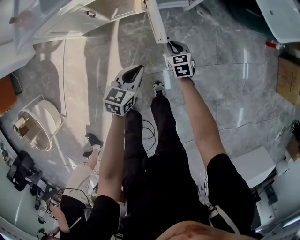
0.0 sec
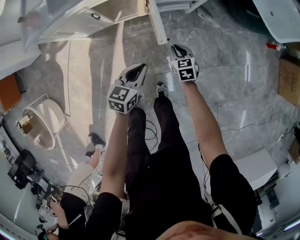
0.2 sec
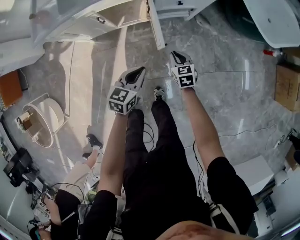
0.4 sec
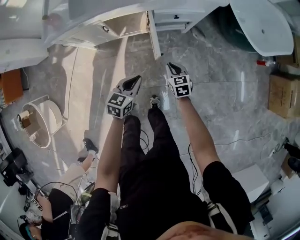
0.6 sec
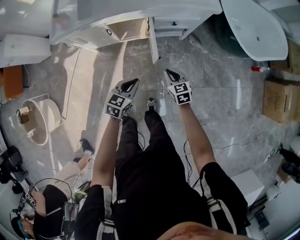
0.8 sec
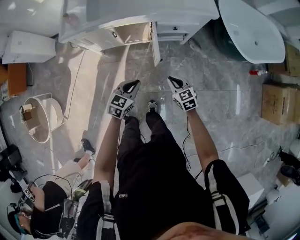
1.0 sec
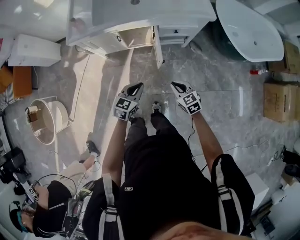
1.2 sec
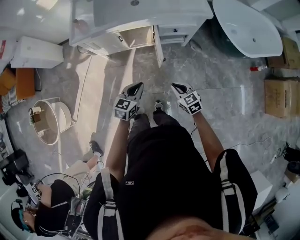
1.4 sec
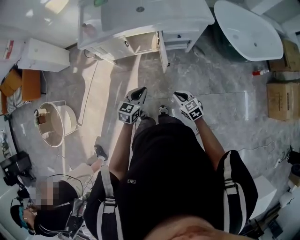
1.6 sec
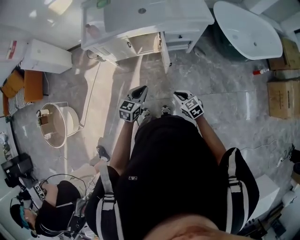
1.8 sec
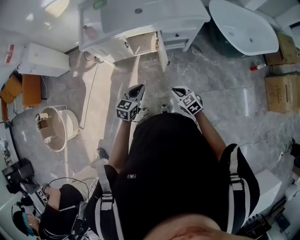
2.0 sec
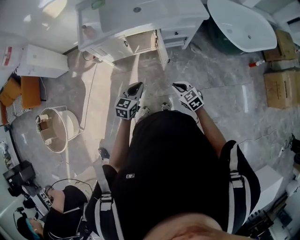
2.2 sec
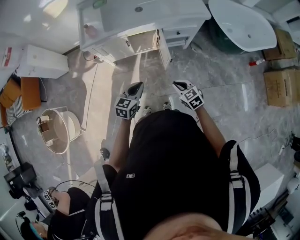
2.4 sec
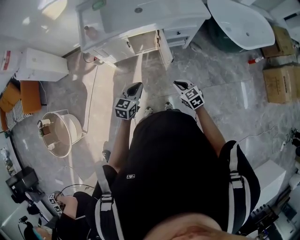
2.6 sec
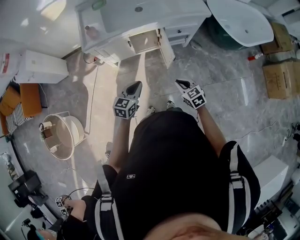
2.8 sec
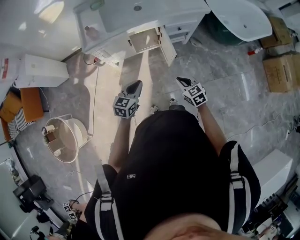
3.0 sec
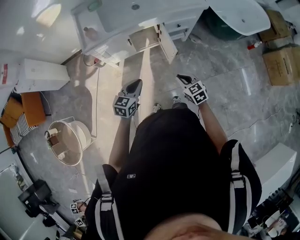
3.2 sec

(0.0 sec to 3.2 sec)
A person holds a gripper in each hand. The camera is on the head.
0.0 sec - 1.6 sec: The two grippers go roughly 30 cm upward and backward. The right gripper changes its angle by roughly 30 degrees.
1.6 sec - 3.2 sec: The two grippers go some 15 cm to the left.

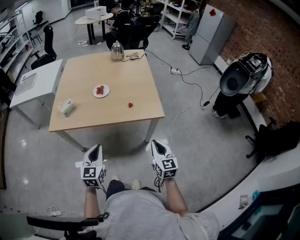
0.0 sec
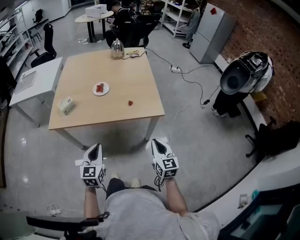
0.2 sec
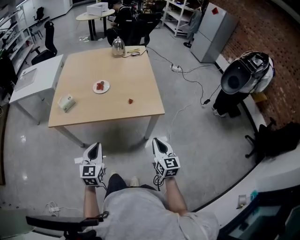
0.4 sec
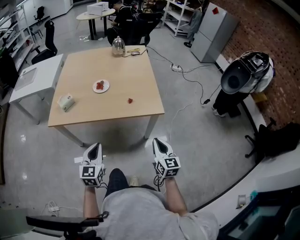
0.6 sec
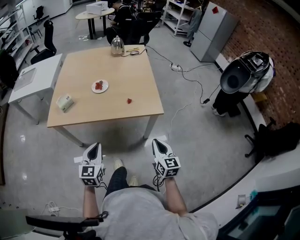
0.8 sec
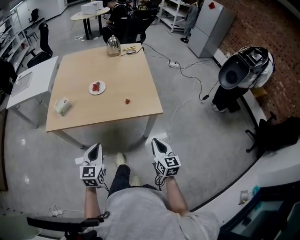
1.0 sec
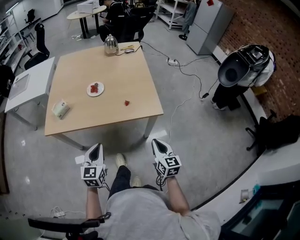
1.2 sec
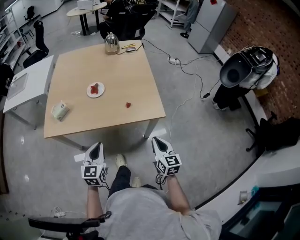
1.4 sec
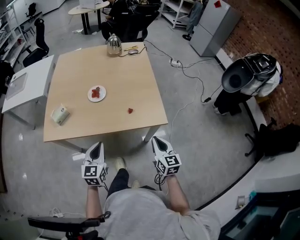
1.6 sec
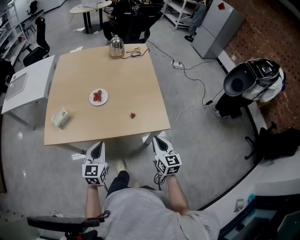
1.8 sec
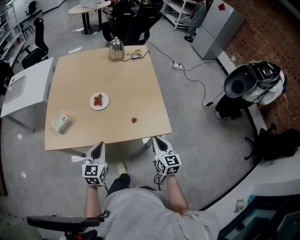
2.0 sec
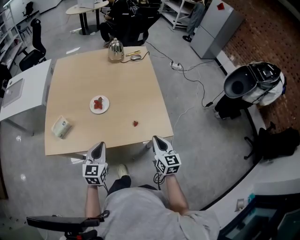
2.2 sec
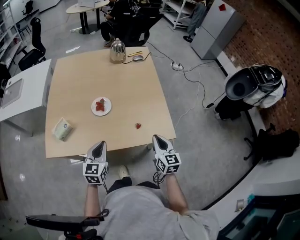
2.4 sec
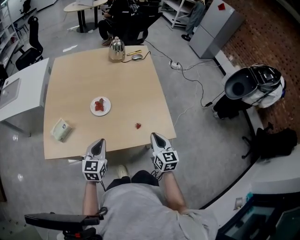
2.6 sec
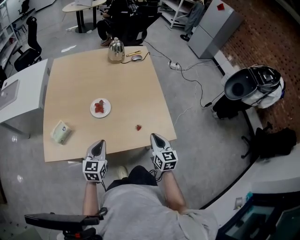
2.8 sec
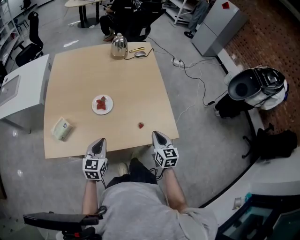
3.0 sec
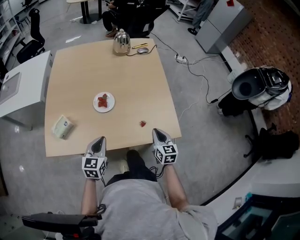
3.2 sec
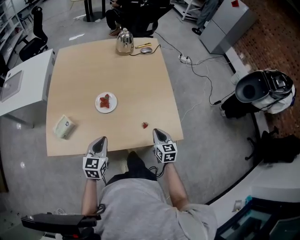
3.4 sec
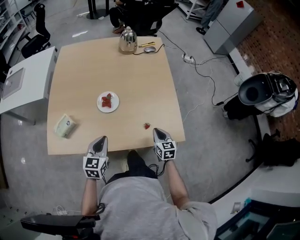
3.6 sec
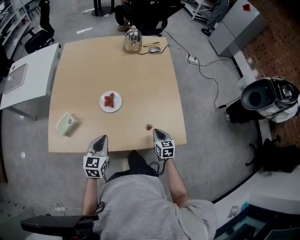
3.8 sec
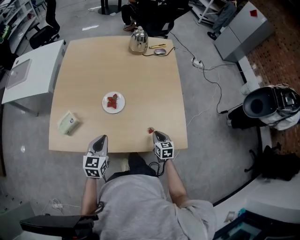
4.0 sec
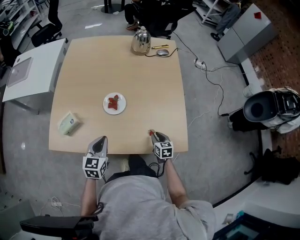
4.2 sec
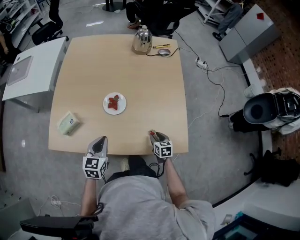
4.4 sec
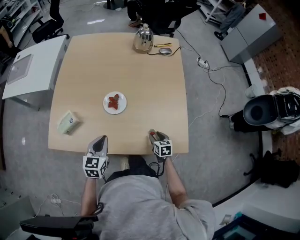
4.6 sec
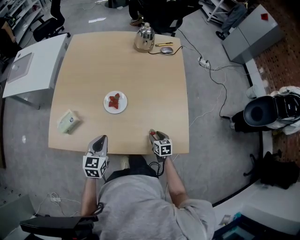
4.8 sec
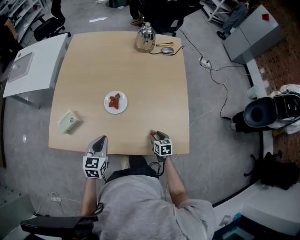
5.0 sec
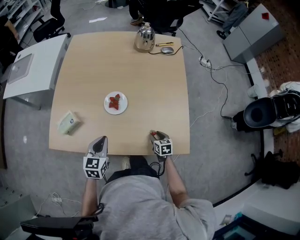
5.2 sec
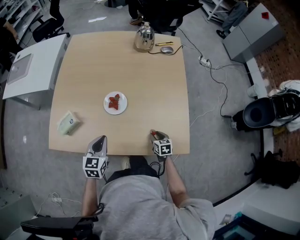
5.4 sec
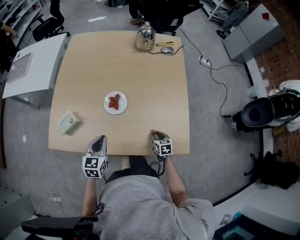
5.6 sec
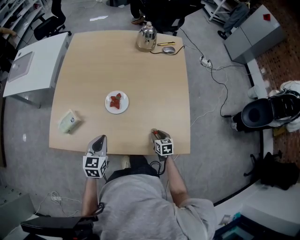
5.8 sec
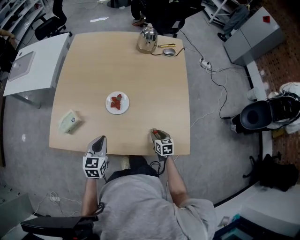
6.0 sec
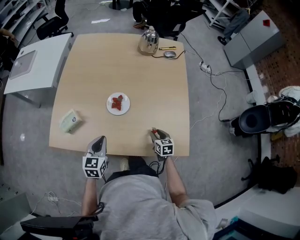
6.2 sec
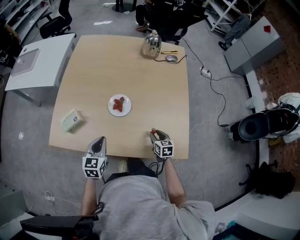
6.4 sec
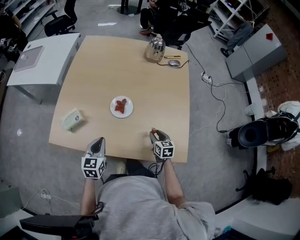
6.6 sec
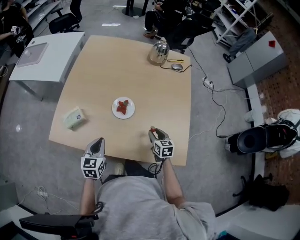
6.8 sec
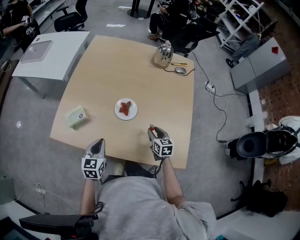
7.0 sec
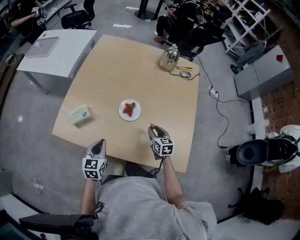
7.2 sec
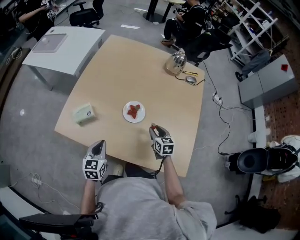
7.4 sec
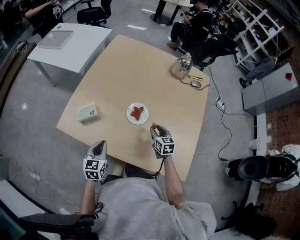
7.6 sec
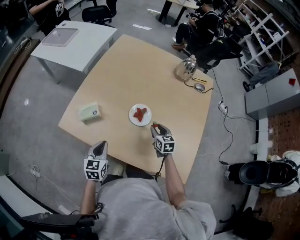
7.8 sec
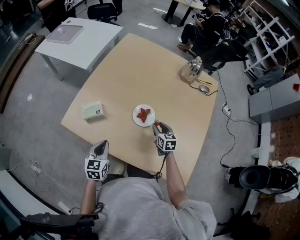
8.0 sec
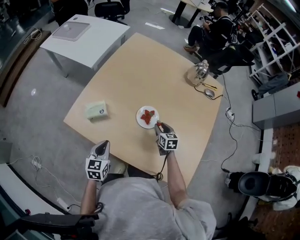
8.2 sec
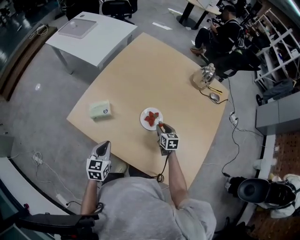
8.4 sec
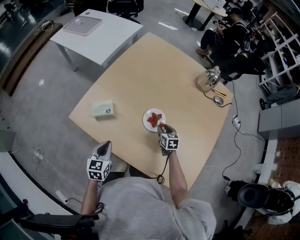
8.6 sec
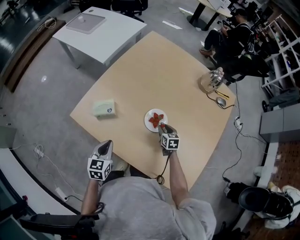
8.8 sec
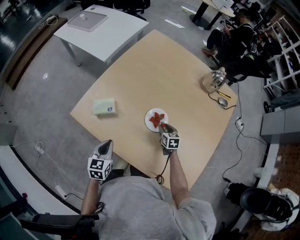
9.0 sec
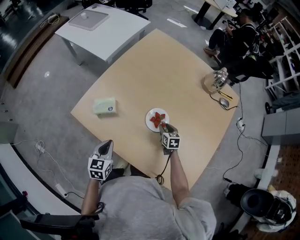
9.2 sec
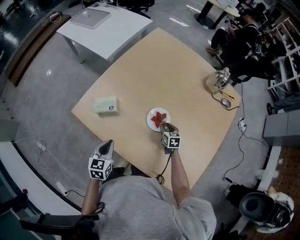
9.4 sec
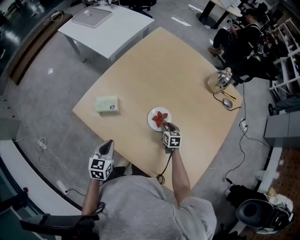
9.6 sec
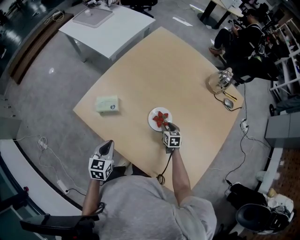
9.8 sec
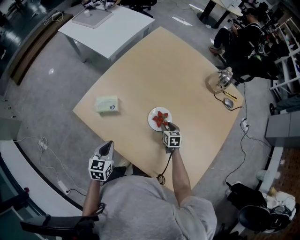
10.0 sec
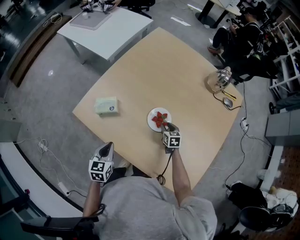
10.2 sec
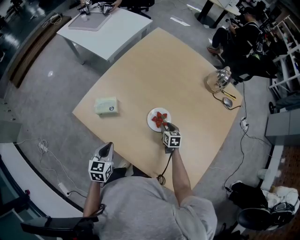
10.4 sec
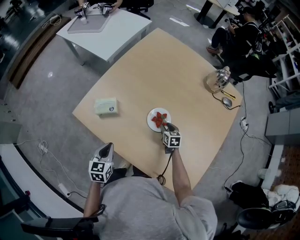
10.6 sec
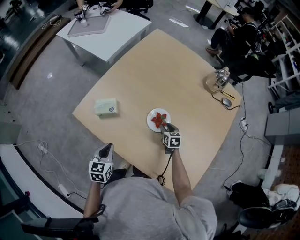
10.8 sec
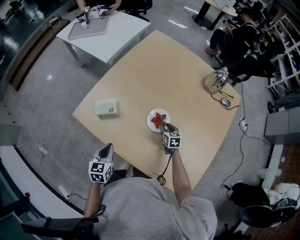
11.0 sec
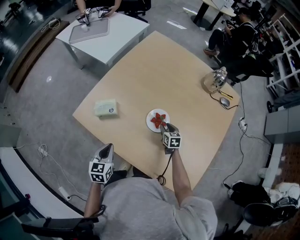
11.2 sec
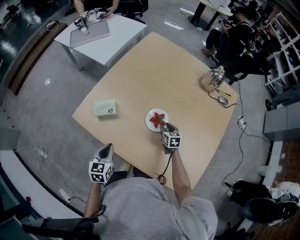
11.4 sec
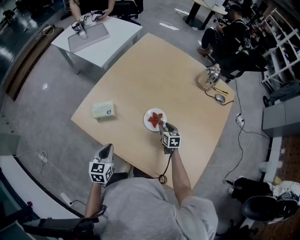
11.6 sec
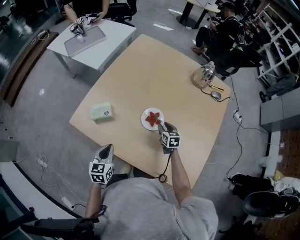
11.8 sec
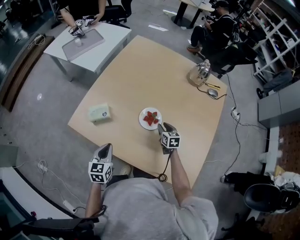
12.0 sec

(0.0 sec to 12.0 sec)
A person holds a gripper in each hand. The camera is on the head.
0.0 sec - 1.6 sec: Both grippers move forward, roughly 15 cm.
1.6 sec - 3.0 sec: Both grippers travel together forward and to the left, about 20 cm.
3.0 sec - 4.4 sec: The right gripper moves downward and forward, approximately 20 cm, changes its angle by about 30 degrees, and opens. Meanwhile the left gripper ends up some 5 cm from where it was.
4.4 sec - 6.0 sec: The grippers stay close to where they were, moving slightly.
6.0 sec - 7.6 sec: The left gripper is displaced to the left by some 10 cm, while the right gripper travels forward, to the left and upward by roughly 20 cm, and turns by roughly 20 degrees.
7.6 sec - 9.0 sec: The right gripper travels downward and forward by roughly 15 cm.
9.0 sec - 10.4 sec: There are only small adjustments of the grippers.
10.4 sec - 12.0 sec: The right gripper goes approximately 5 cm upward.

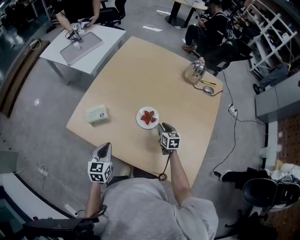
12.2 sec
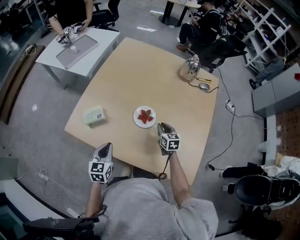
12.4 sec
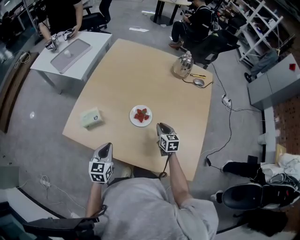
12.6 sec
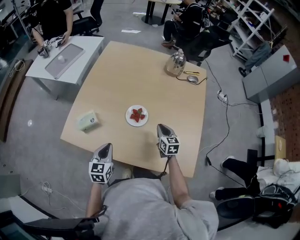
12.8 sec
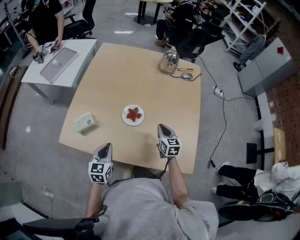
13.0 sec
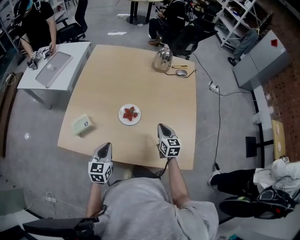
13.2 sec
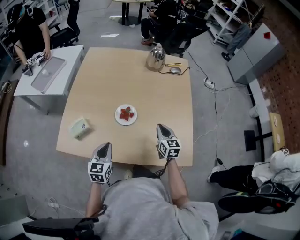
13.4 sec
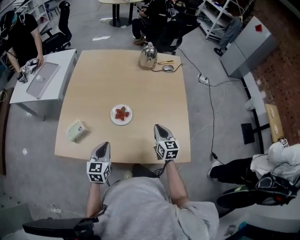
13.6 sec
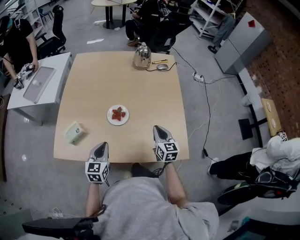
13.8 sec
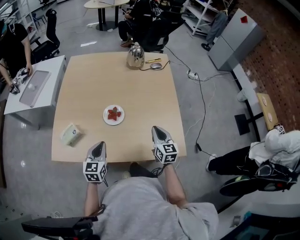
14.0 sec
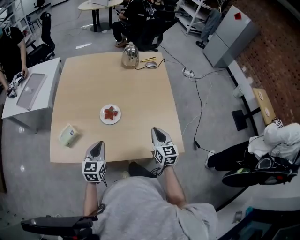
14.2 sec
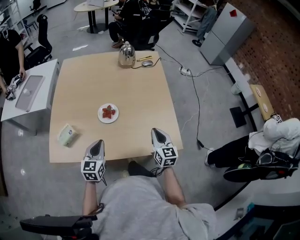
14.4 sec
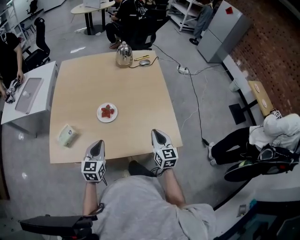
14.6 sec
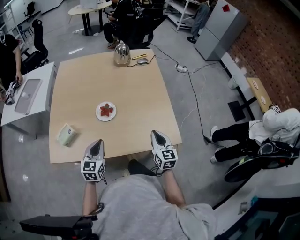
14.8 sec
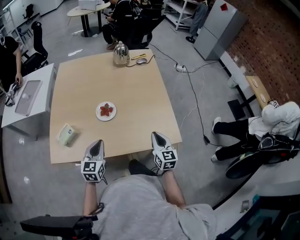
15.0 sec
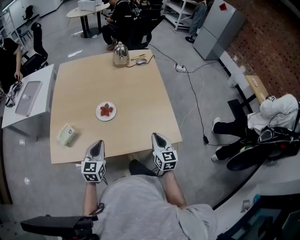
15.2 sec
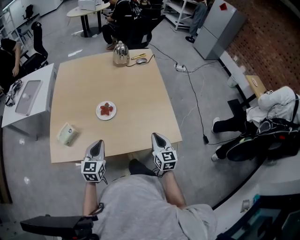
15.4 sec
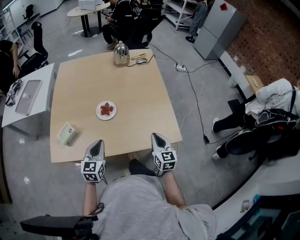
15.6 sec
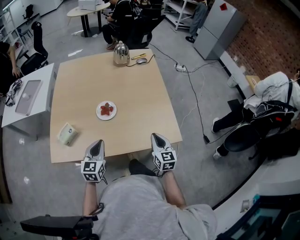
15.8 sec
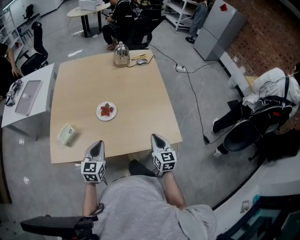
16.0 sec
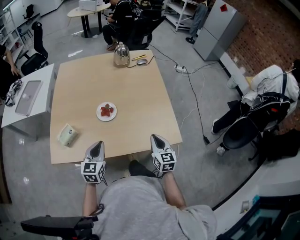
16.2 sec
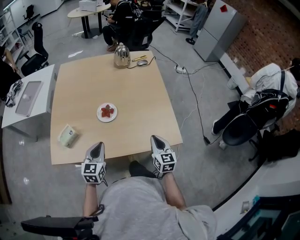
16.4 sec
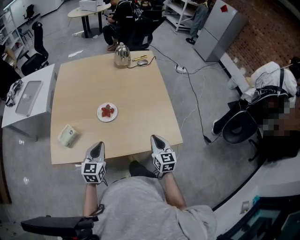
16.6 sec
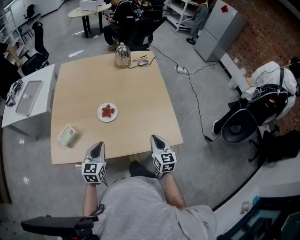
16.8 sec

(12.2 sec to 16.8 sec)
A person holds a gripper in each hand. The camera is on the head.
12.2 sec - 13.8 sec: The left gripper ends up about 10 cm from where it was, and turns by roughly 30 degrees, while the right gripper shifts by roughly 20 cm, swivels some 30 degrees, and closes.
13.8 sec - 15.2 sec: The left gripper changes place by some 5 cm; the right gripper travels backward by roughly 15 cm.
15.2 sec - 16.8 sec: The grippers stay close to where they were, moving slightly.

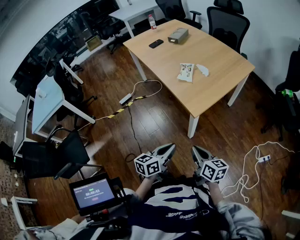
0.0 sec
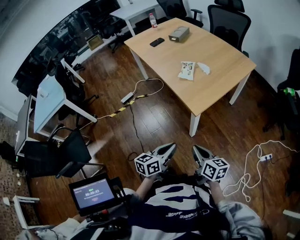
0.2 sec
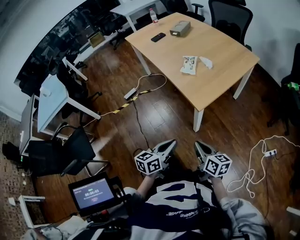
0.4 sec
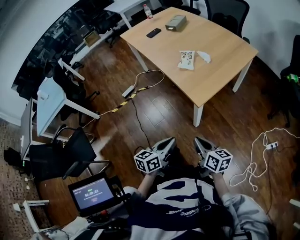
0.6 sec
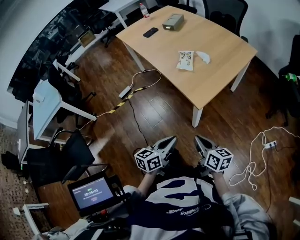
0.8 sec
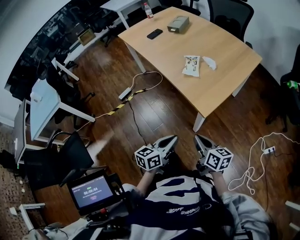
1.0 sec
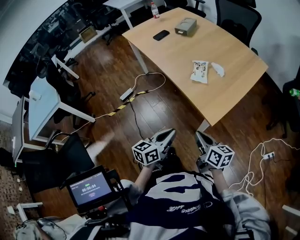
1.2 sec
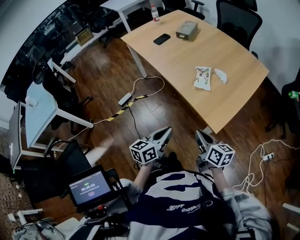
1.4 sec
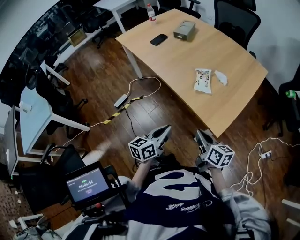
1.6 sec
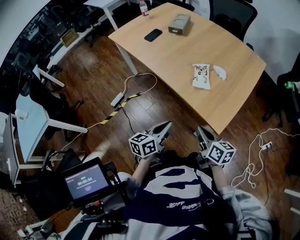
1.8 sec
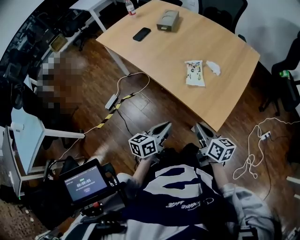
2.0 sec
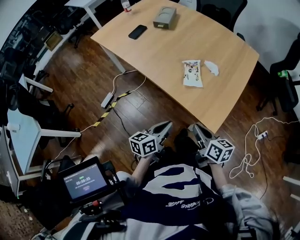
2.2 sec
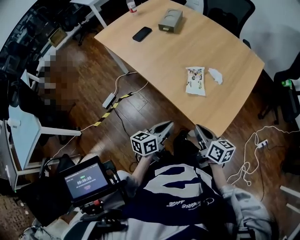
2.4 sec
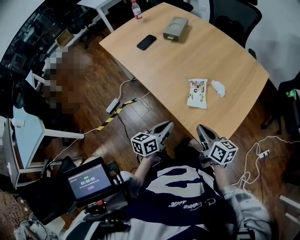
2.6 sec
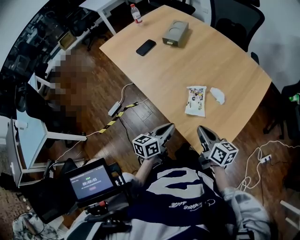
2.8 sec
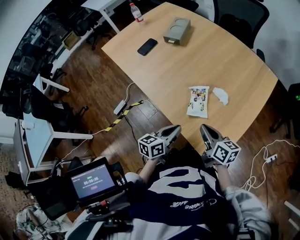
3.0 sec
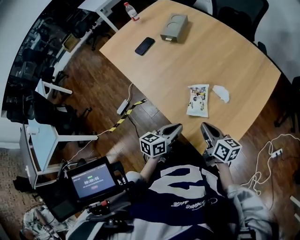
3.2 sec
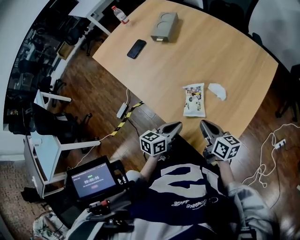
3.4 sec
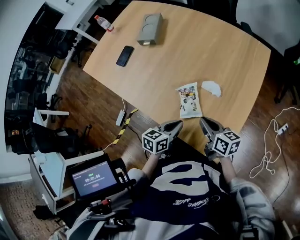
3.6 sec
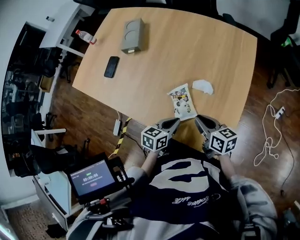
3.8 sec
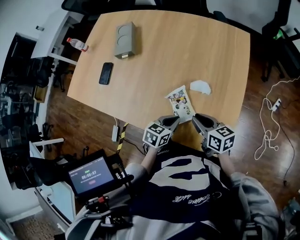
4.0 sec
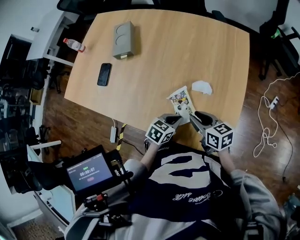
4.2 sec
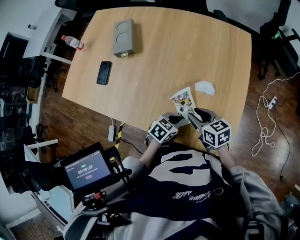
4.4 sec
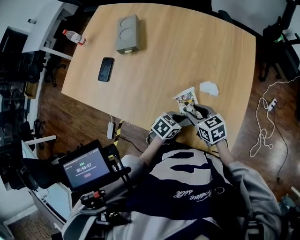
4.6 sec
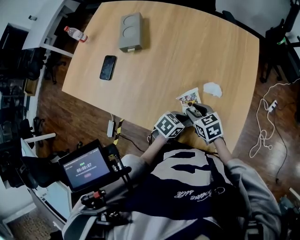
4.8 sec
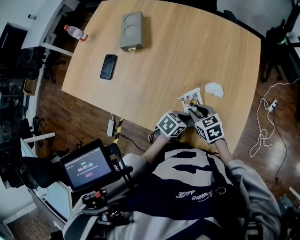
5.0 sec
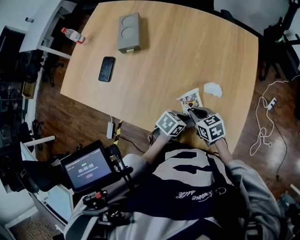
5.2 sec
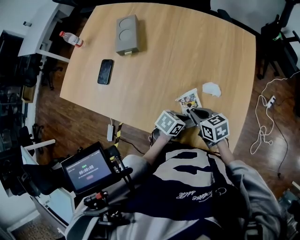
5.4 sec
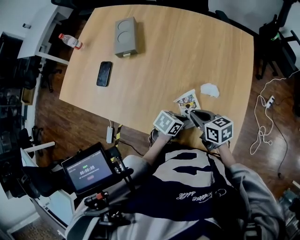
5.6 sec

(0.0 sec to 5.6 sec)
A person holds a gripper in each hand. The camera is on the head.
0.0 sec - 1.4 sec: Both grippers move forward and to the left, about 25 cm.
1.4 sec - 2.8 sec: The two grippers go some 25 cm forward.
2.8 sec - 4.2 sec: The left gripper changes place by roughly 15 cm, and changes its angle by approximately 60 degrees. The right gripper ends up about 10 cm from where it was, and opens.
4.2 sec - 5.6 sec: The right gripper closes up.
